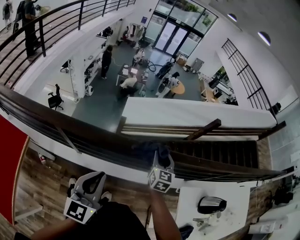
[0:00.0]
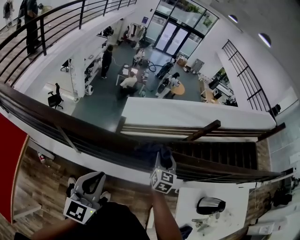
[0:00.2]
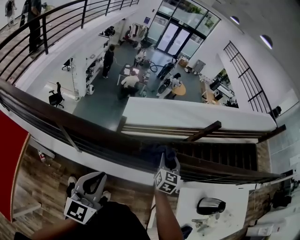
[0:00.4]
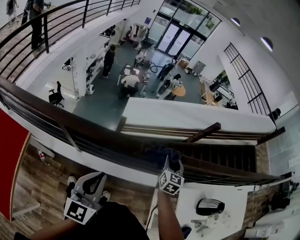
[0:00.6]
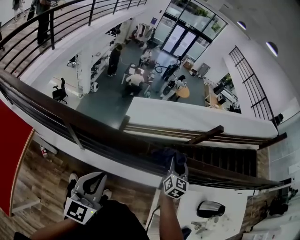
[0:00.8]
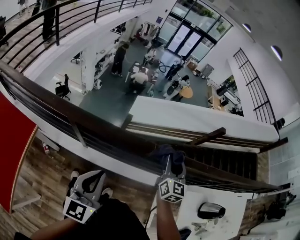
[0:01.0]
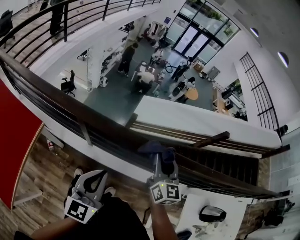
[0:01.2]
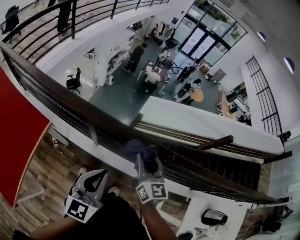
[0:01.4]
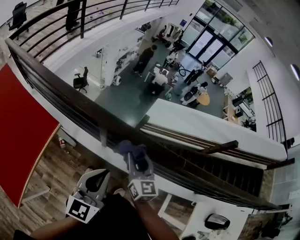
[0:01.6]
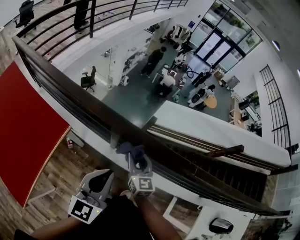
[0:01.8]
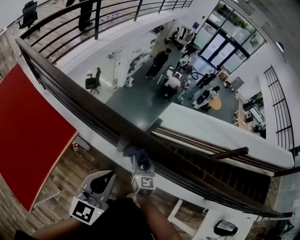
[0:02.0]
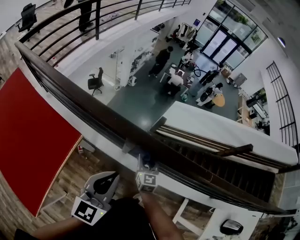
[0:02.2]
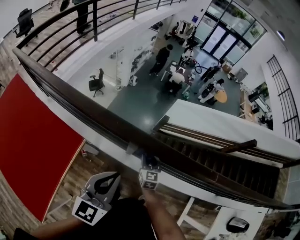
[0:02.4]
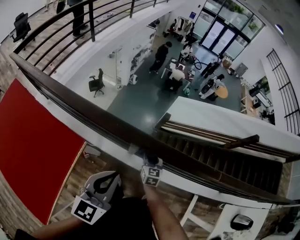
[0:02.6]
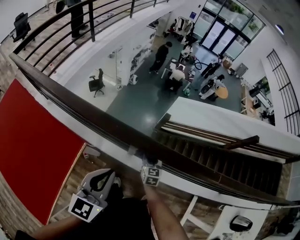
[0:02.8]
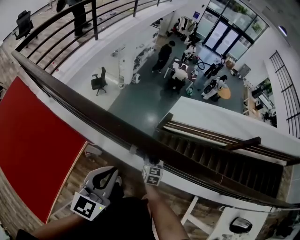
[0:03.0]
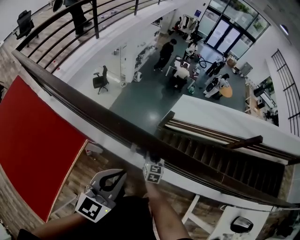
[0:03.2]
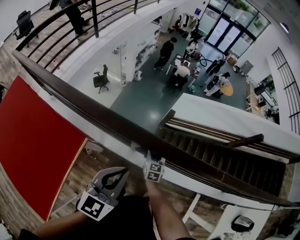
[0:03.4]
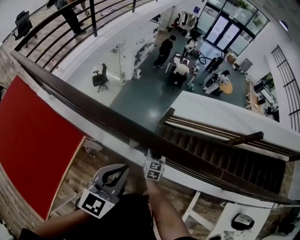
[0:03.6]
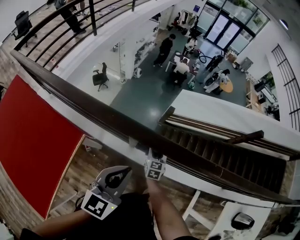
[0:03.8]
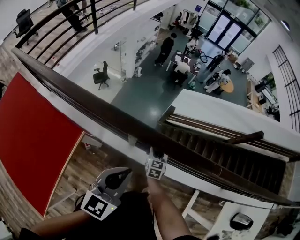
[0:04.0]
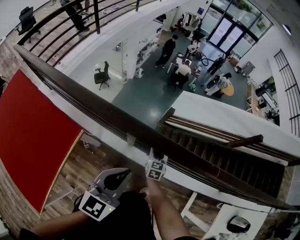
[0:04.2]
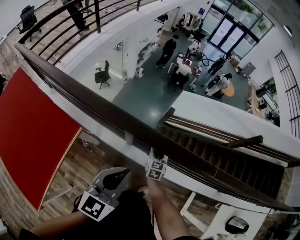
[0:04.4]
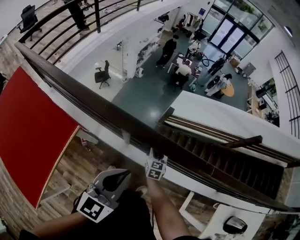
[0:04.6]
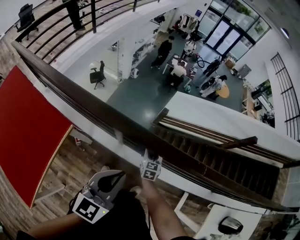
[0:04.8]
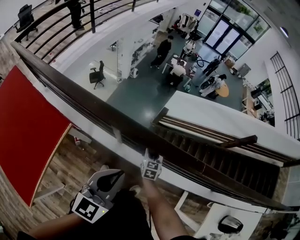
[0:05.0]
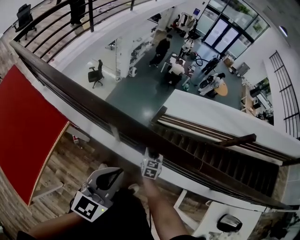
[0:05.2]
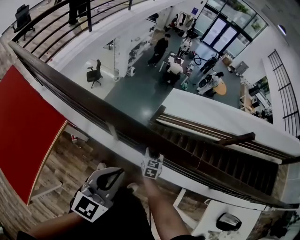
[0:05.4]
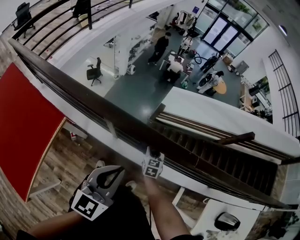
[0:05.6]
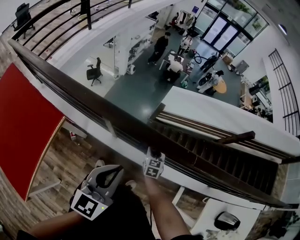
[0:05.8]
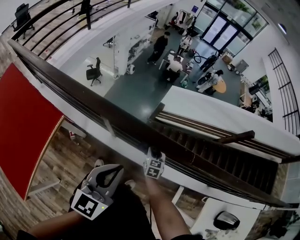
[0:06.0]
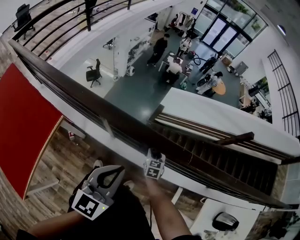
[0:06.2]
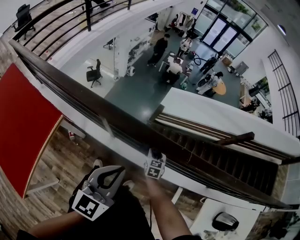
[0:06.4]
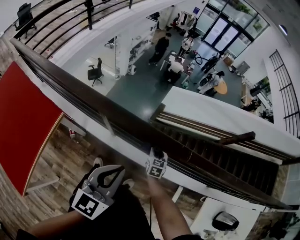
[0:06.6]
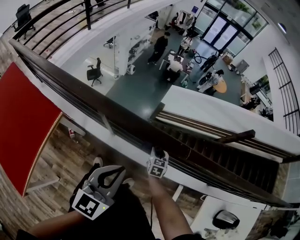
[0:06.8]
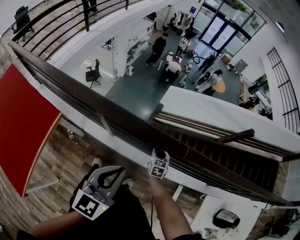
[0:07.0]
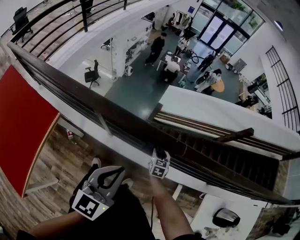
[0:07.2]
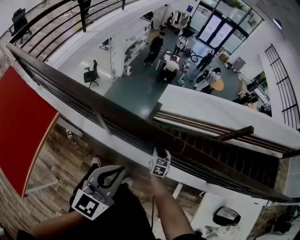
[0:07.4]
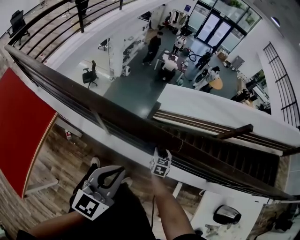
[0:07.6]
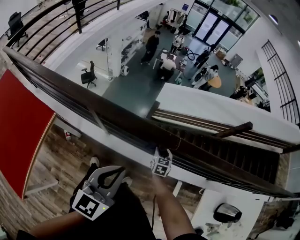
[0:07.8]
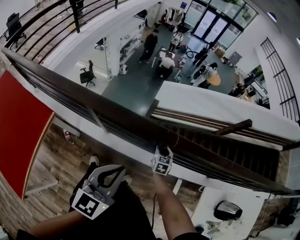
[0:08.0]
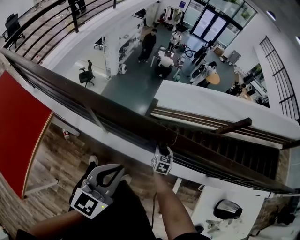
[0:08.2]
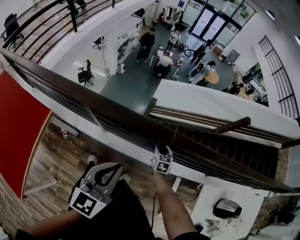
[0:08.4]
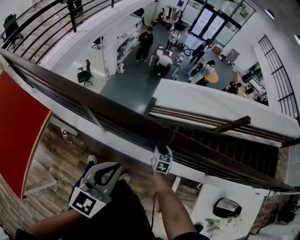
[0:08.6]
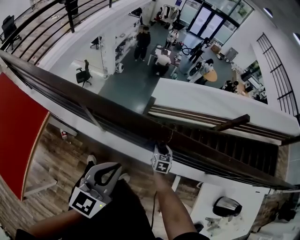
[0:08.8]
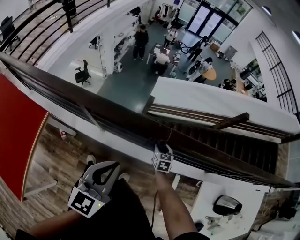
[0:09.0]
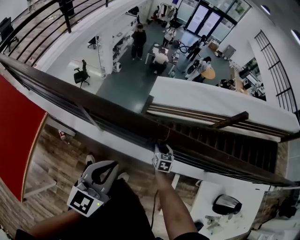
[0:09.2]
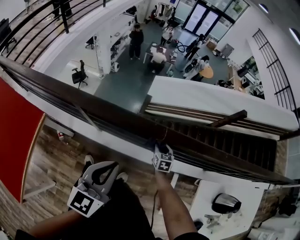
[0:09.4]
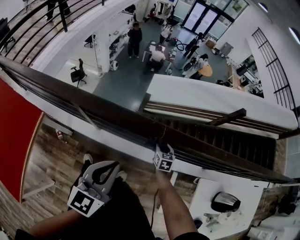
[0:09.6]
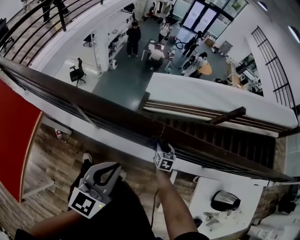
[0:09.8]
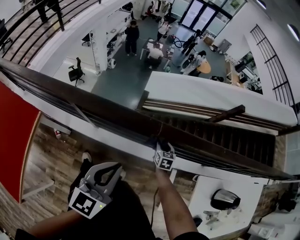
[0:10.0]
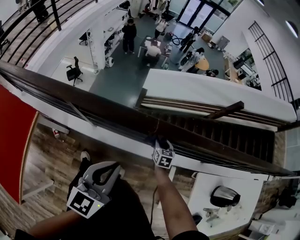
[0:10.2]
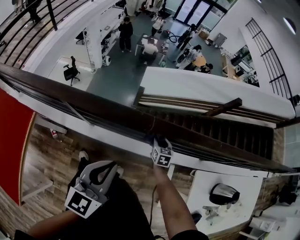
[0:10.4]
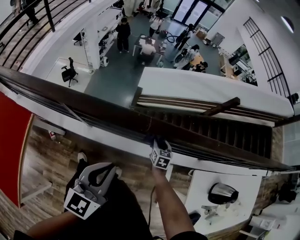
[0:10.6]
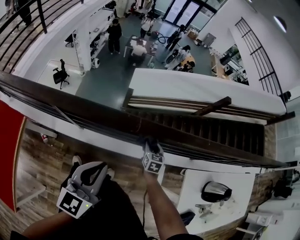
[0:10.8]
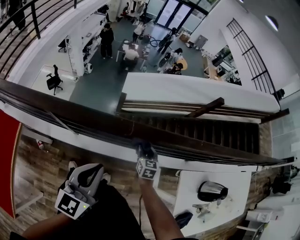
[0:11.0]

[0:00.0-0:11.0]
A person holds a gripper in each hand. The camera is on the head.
0:00.0 to 0:01.6: The right gripper shifts by some 35 cm, and changes its angle by approximately 40 degrees. The left gripper changes place by about 15 cm.
0:01.6 to 0:03.2: The left gripper goes about 10 cm to the left and forward. The right gripper is displaced downward by roughly 25 cm, and swivels some 30 degrees.
0:03.2 to 0:04.8: Both grippers travel together to the right, roughly 10 cm.
0:04.8 to 0:06.2: The right gripper shifts approximately 10 cm to the right. The left gripper moves to the right, about 5 cm.
0:06.2 to 0:07.8: The left gripper travels to the right by approximately 5 cm. Meanwhile the right gripper heads to the right, covering roughly 10 cm.
0:07.8 to 0:09.4: The right gripper shifts approximately 5 cm to the right.
0:09.4 to 0:11.0: The right gripper goes some 5 cm upward.

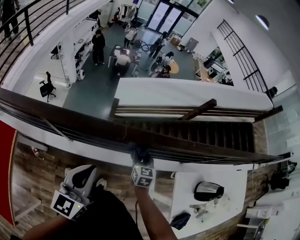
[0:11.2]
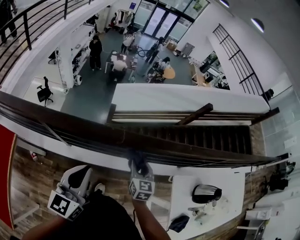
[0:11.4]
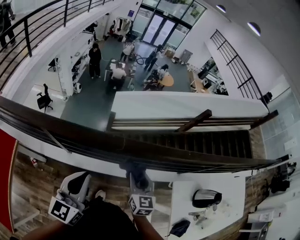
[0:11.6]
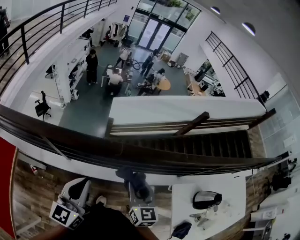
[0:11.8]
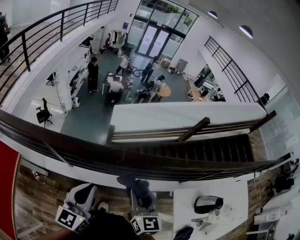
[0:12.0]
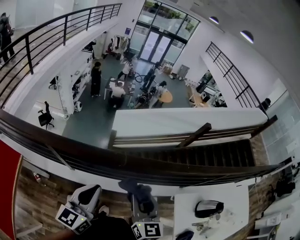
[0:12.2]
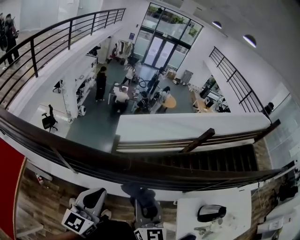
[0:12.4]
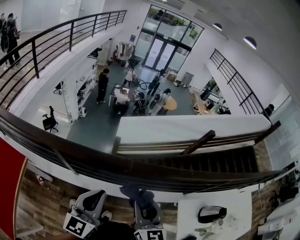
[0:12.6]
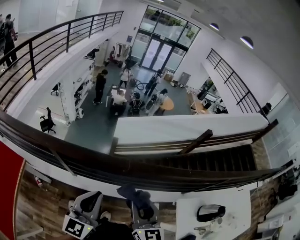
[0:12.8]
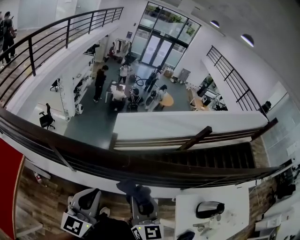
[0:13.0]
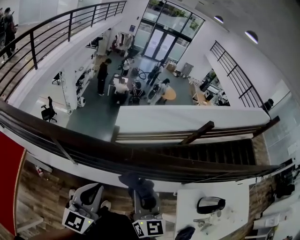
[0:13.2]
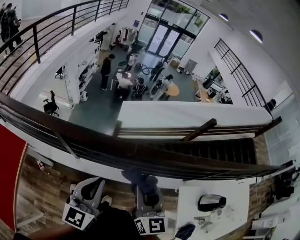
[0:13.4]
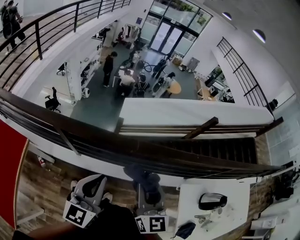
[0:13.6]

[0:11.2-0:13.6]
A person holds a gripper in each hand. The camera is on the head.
0:11.2 to 0:12.4: The right gripper is displaced upward and backward by roughly 25 cm, and swivels some 20 degrees.
0:12.4 to 0:13.6: The grippers stay close to where they were, moving slightly.

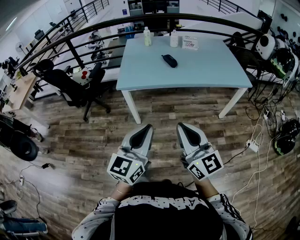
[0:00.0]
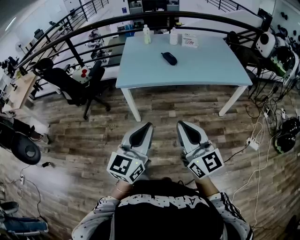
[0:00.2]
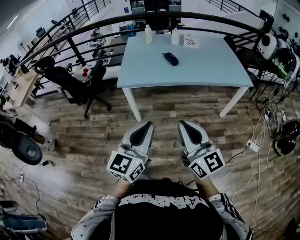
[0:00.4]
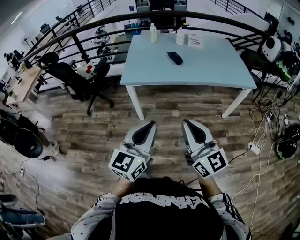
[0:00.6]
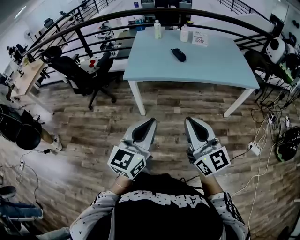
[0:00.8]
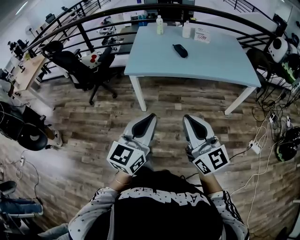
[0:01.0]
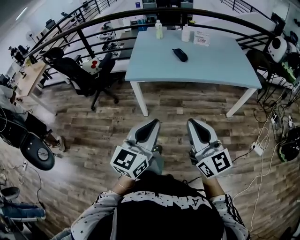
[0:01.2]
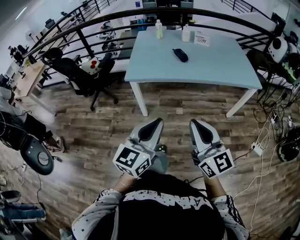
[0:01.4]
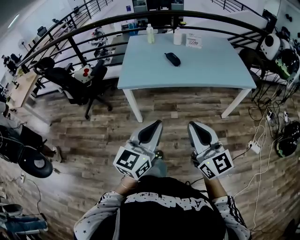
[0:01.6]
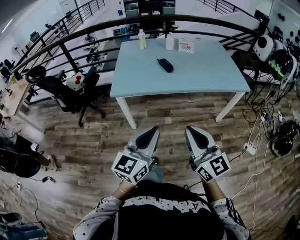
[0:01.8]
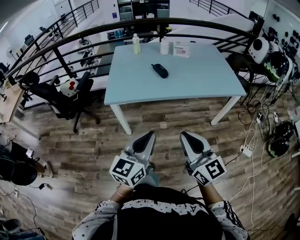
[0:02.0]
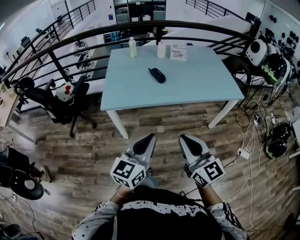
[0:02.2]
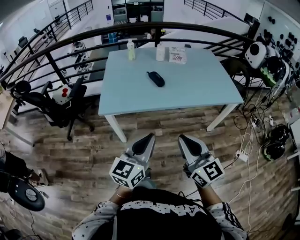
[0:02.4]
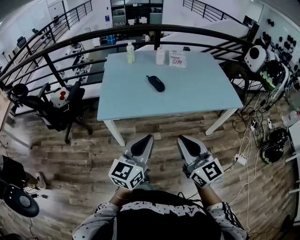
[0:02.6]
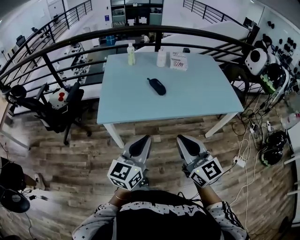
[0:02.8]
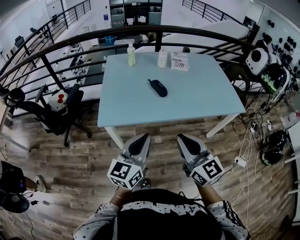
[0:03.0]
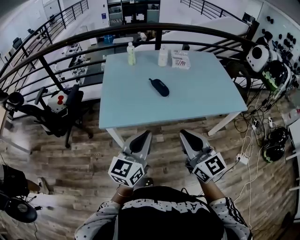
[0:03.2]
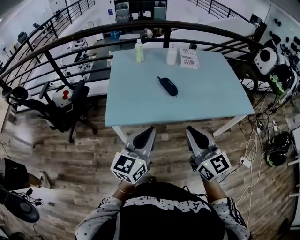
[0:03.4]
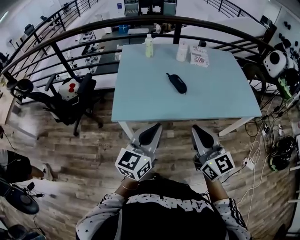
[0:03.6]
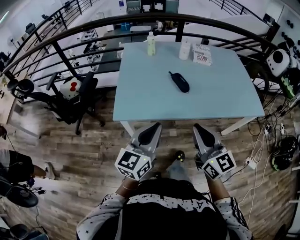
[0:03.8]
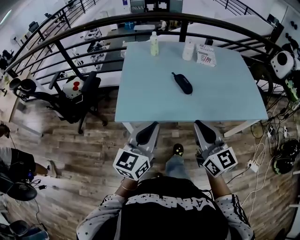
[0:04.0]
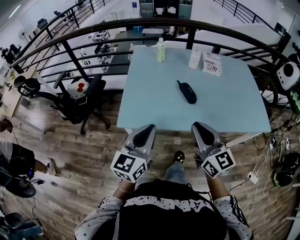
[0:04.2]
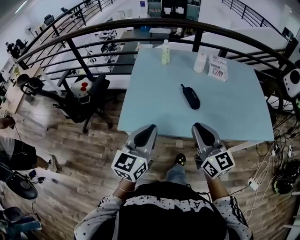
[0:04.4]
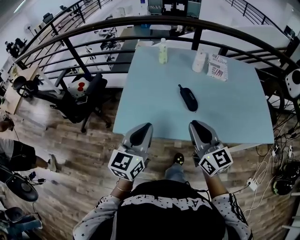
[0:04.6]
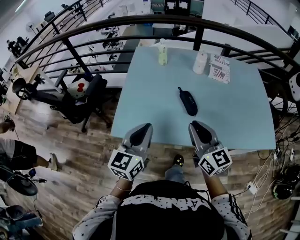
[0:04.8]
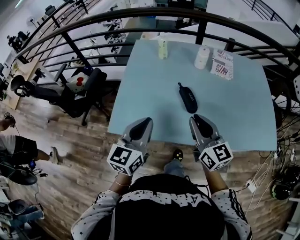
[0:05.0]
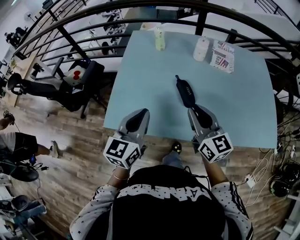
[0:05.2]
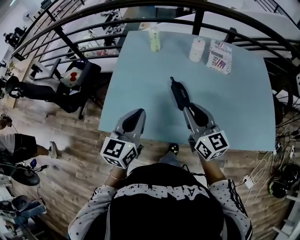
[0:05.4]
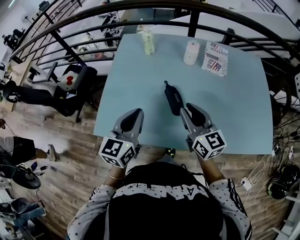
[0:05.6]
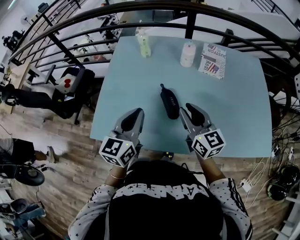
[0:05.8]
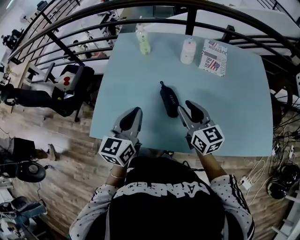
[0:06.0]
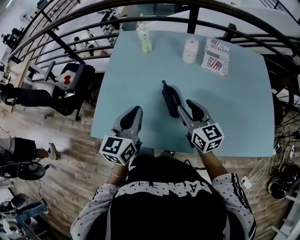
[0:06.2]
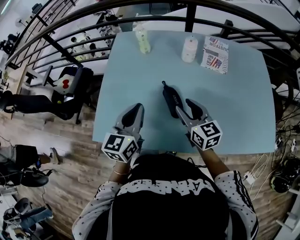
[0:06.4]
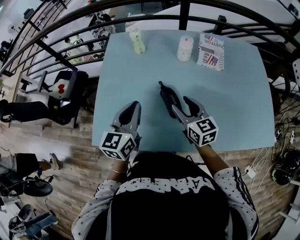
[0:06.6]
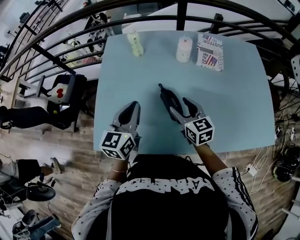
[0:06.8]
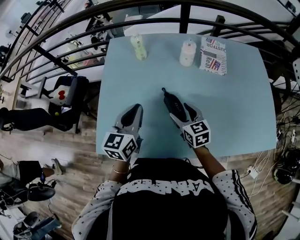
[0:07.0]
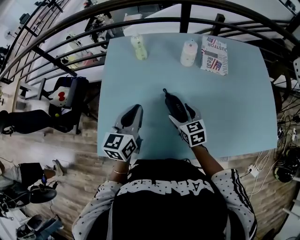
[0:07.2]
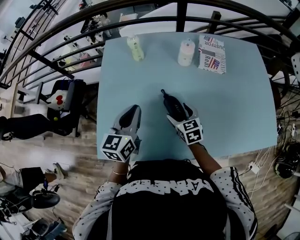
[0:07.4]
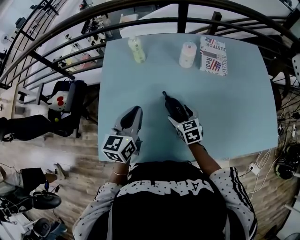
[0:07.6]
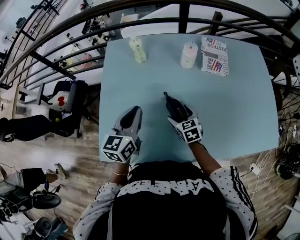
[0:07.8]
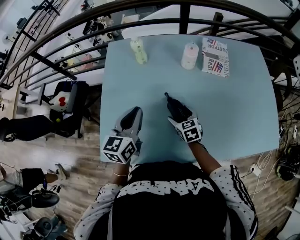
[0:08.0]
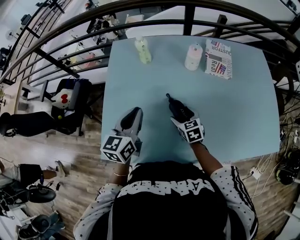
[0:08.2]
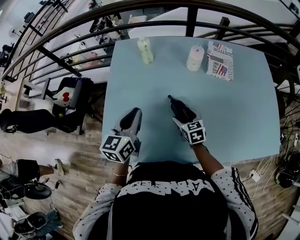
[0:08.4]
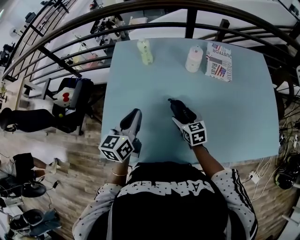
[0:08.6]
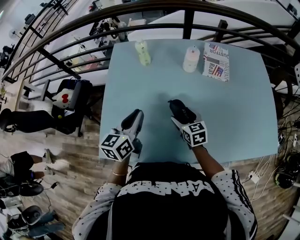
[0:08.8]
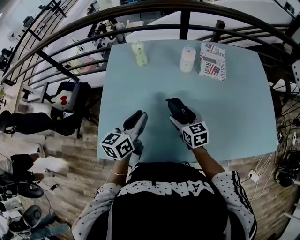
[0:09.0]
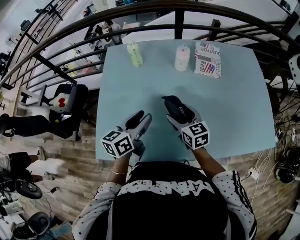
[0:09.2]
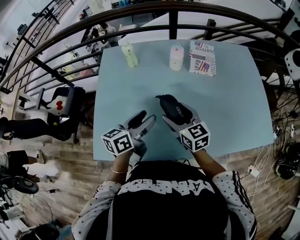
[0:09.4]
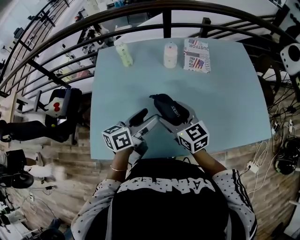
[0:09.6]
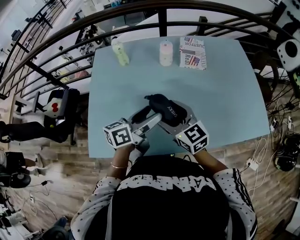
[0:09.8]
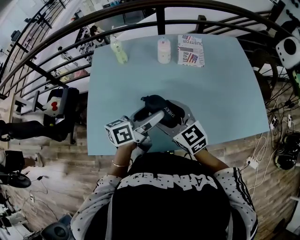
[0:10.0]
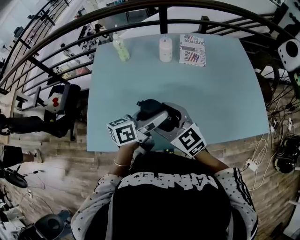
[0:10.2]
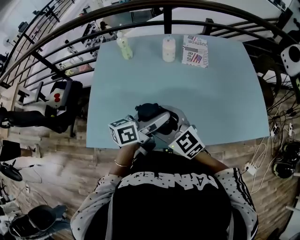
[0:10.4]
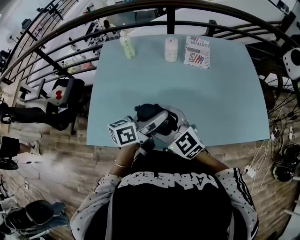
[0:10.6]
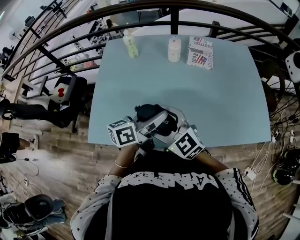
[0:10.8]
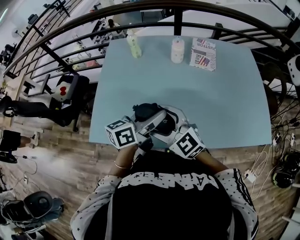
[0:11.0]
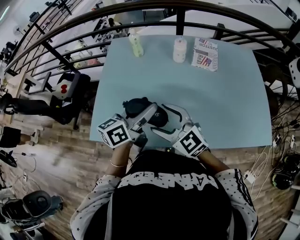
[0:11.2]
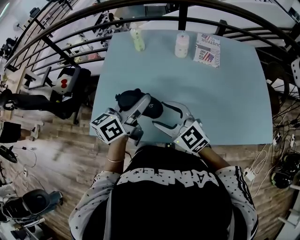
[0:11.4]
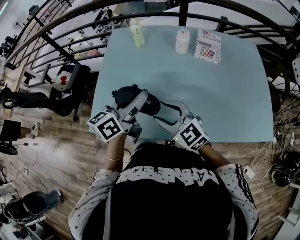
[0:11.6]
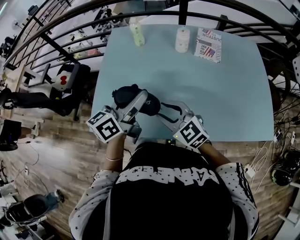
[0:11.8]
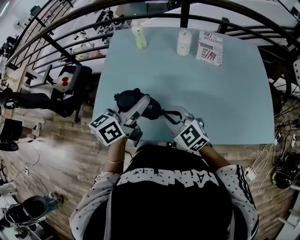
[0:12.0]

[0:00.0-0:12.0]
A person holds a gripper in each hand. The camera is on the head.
0:00.0 to 0:01.6: The grippers stay close to where they were, moving slightly.
0:01.6 to 0:03.0: Both grippers move forward, approximately 25 cm.
0:03.0 to 0:04.4: The left gripper shifts roughly 15 cm forward and to the left. The right gripper travels forward by about 20 cm.
0:04.4 to 0:06.0: The right gripper travels forward, to the right and downward by about 35 cm, while the left gripper heads forward and to the right, covering roughly 30 cm.
0:06.0 to 0:07.6: The left gripper goes roughly 15 cm forward; the right gripper travels downward and forward by about 20 cm, angles its fingers downward, by about 30 degrees, and opens up.
0:07.6 to 0:09.0: The right gripper shifts about 5 cm upward.
0:09.0 to 0:10.4: The left gripper shifts roughly 20 cm to the right and backward, and turns by roughly 30 degrees, while the right gripper goes about 20 cm backward and upward, and turns by approximately 30 degrees.
0:10.4 to 0:12.0: The left gripper shifts approximately 10 cm to the left and upward, and rotates some 20 degrees. The right gripper closes its fingers.
